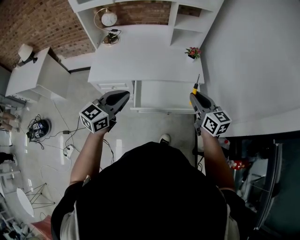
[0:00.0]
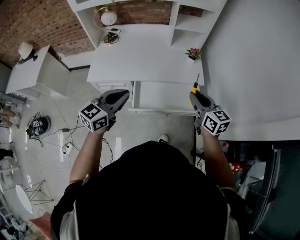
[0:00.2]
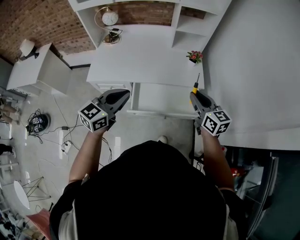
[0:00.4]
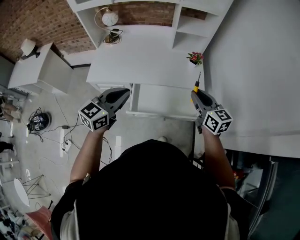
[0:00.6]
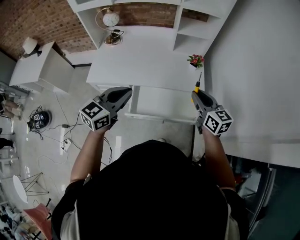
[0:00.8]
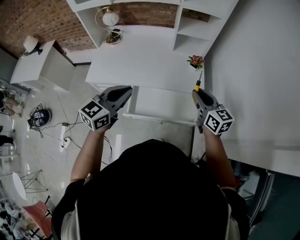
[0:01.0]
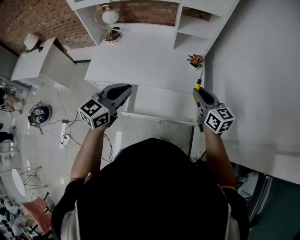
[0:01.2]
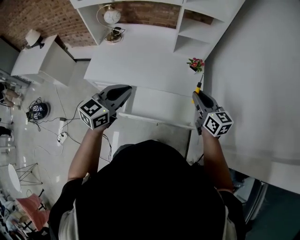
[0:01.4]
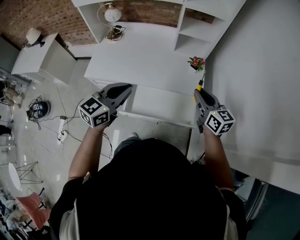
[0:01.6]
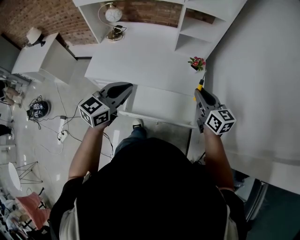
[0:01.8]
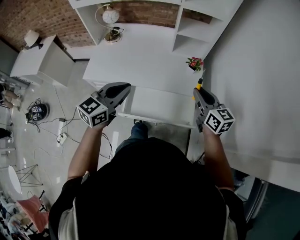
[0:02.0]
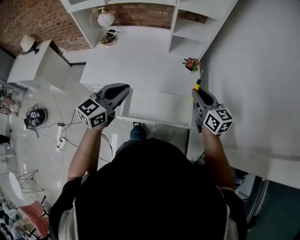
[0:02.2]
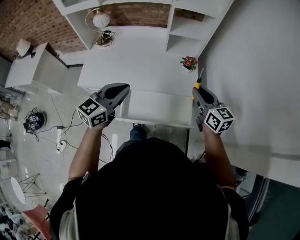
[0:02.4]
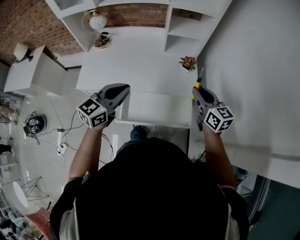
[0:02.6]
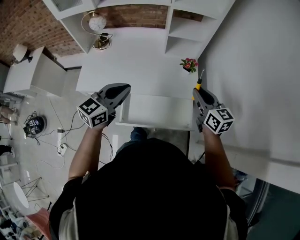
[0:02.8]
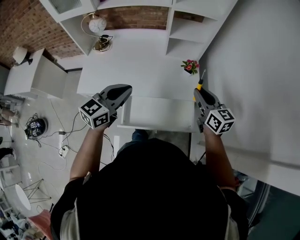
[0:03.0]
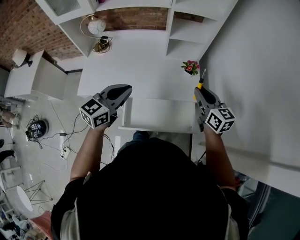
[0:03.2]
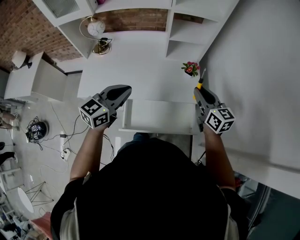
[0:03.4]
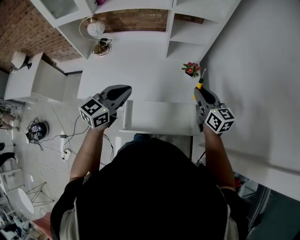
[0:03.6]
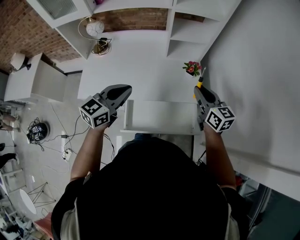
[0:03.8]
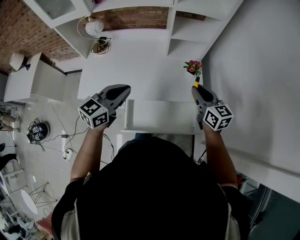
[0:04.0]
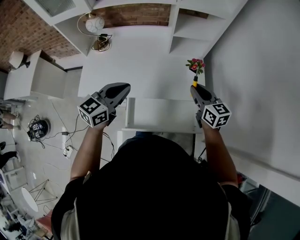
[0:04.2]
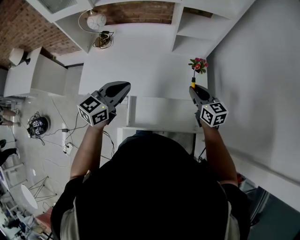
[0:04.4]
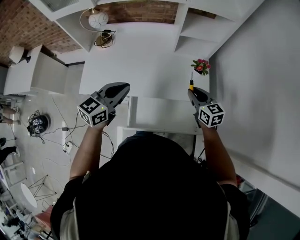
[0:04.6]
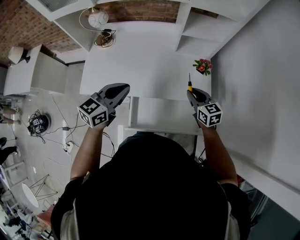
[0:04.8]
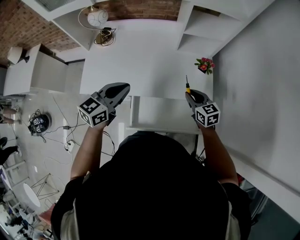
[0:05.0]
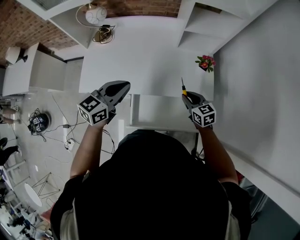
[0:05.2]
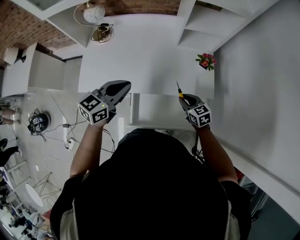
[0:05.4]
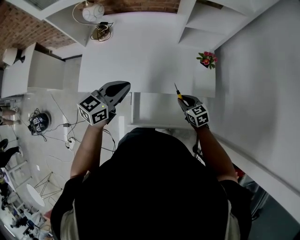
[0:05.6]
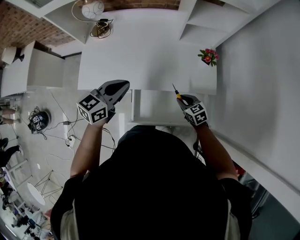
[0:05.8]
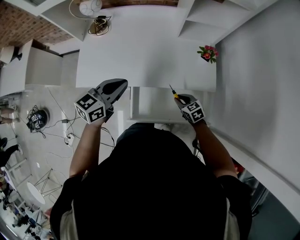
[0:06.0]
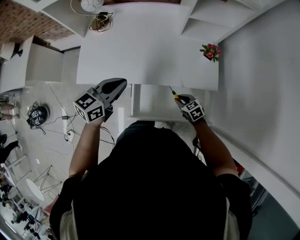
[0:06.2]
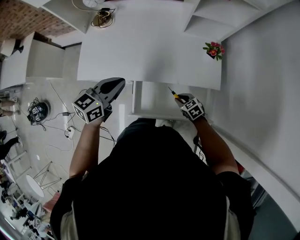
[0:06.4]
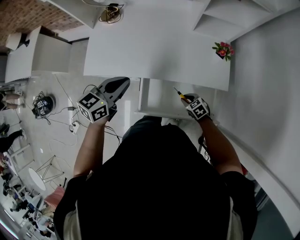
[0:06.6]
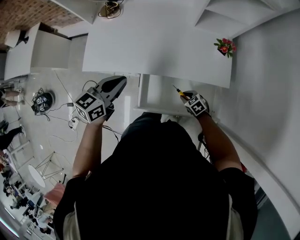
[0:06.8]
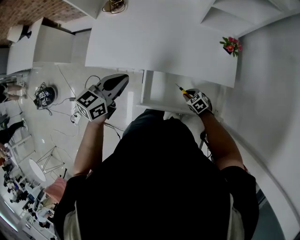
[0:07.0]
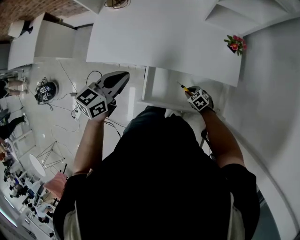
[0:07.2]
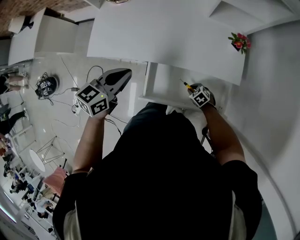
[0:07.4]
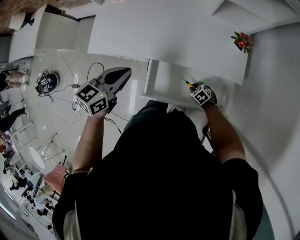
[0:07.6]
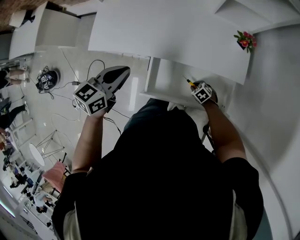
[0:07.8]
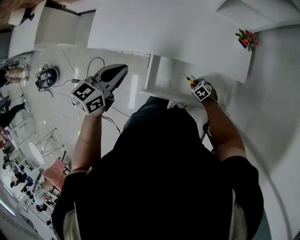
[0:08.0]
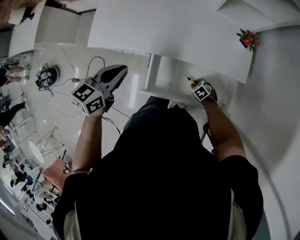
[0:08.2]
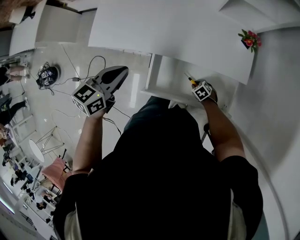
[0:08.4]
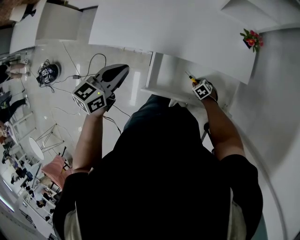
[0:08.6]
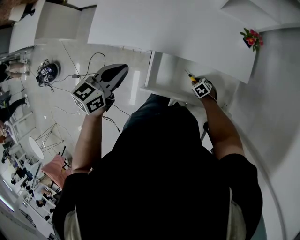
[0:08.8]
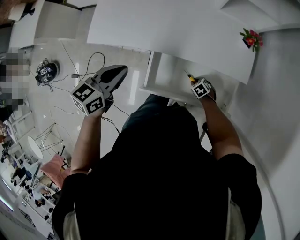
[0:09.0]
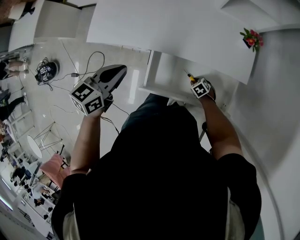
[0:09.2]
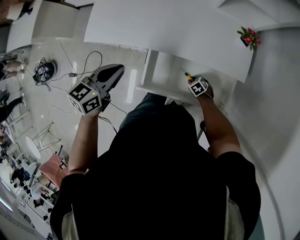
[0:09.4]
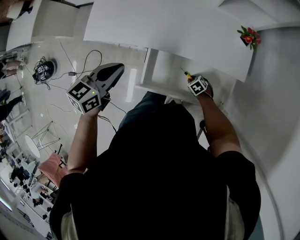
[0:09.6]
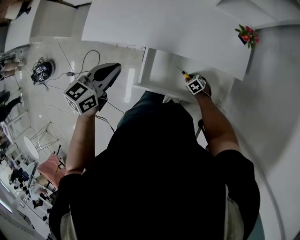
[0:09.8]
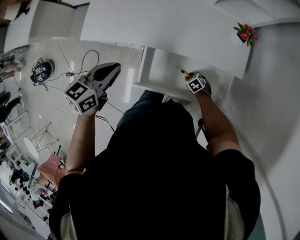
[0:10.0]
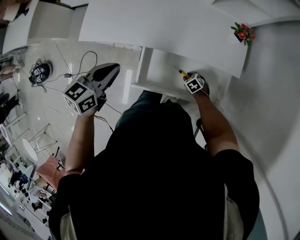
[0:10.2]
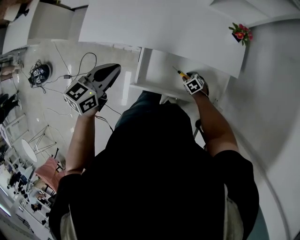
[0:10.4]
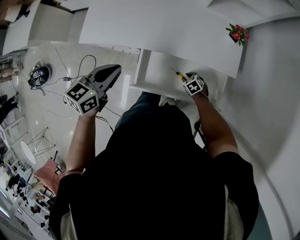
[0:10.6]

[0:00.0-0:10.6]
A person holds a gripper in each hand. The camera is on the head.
0:00.0 to 0:01.6: Both grippers travel together forward and to the right, approximately 15 cm.
0:01.6 to 0:03.0: Both grippers move forward, about 10 cm.
0:03.0 to 0:04.6: The right gripper goes roughly 15 cm downward, to the left and forward, while the left gripper goes some 10 cm to the left and forward.
0:04.6 to 0:06.0: The left gripper is displaced downward by about 5 cm. The right gripper moves downward, some 20 cm, and swivels approximately 30 degrees.
0:06.0 to 0:07.6: The left gripper heads downward and to the left, covering about 10 cm, while the right gripper shifts roughly 20 cm downward, and swivels about 30 degrees.
0:07.6 to 0:09.0: The right gripper moves downward, approximately 5 cm.
0:09.0 to 0:10.6: The right gripper moves roughly 5 cm.

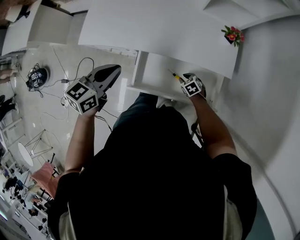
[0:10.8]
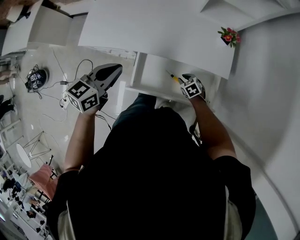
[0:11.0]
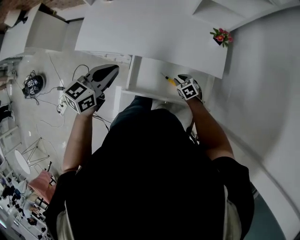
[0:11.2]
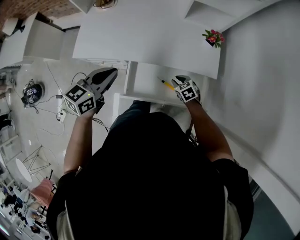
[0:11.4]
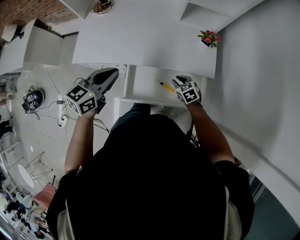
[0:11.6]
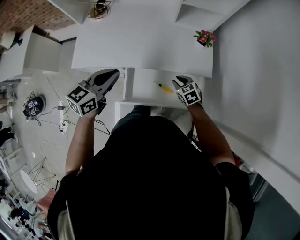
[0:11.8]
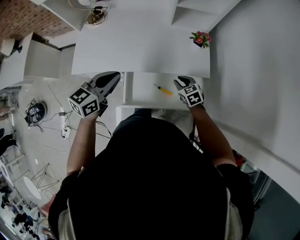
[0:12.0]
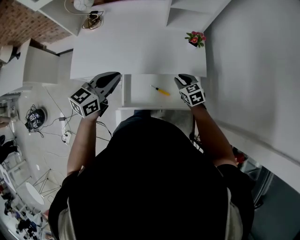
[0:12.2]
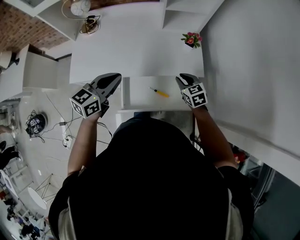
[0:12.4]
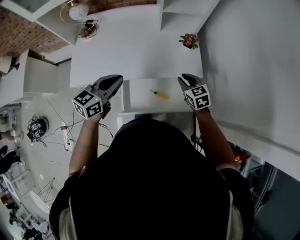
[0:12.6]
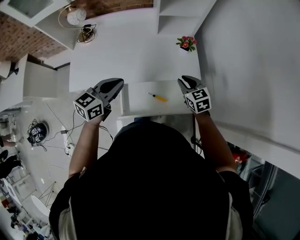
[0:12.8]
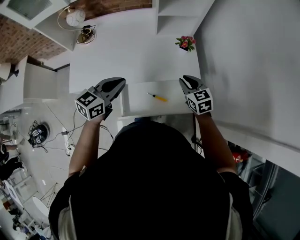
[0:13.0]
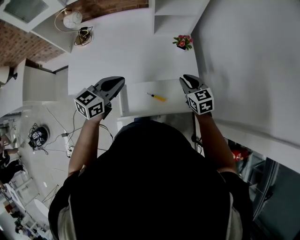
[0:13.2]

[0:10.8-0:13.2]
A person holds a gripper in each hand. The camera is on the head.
0:10.8 to 0:12.0: The right gripper heads upward, covering some 20 cm, and turns by some 20 degrees. Meanwhile the left gripper goes approximately 10 cm upward and to the right.
0:12.0 to 0:13.2: The right gripper shifts about 15 cm upward and to the right; the left gripper is displaced to the right by roughly 5 cm.

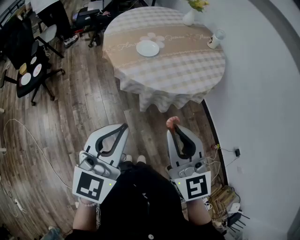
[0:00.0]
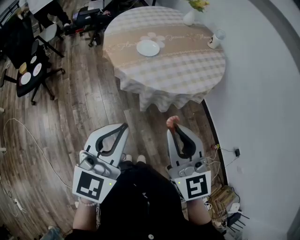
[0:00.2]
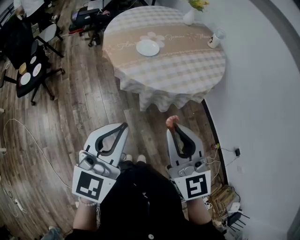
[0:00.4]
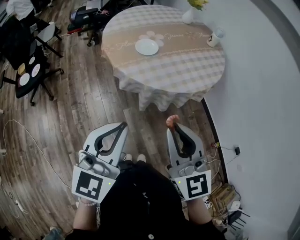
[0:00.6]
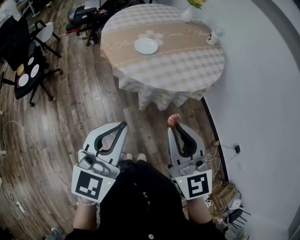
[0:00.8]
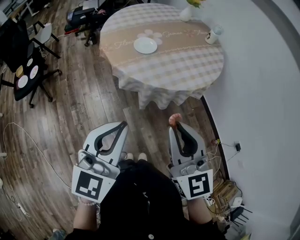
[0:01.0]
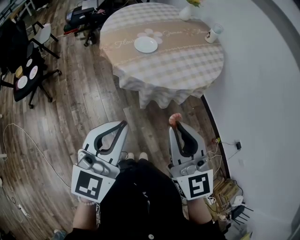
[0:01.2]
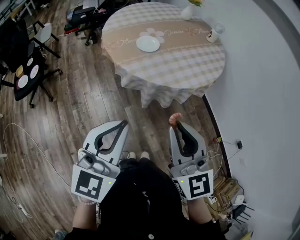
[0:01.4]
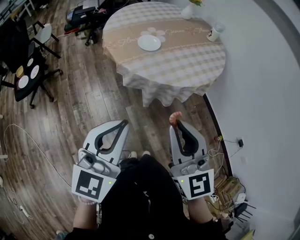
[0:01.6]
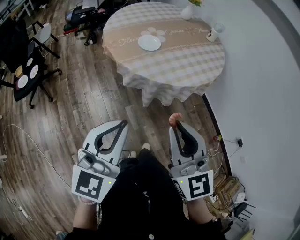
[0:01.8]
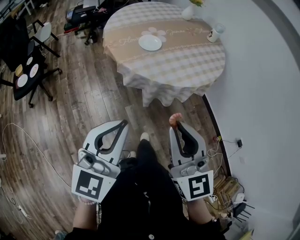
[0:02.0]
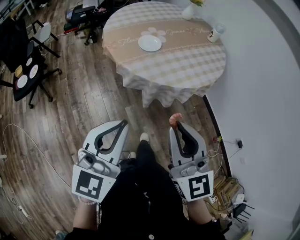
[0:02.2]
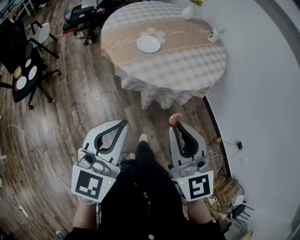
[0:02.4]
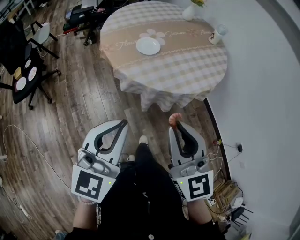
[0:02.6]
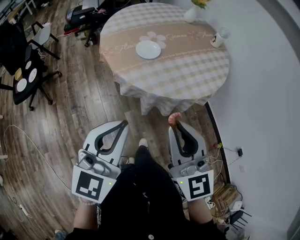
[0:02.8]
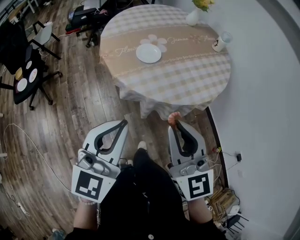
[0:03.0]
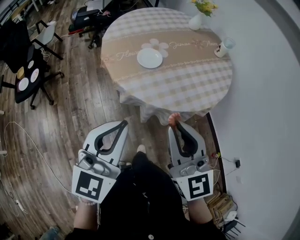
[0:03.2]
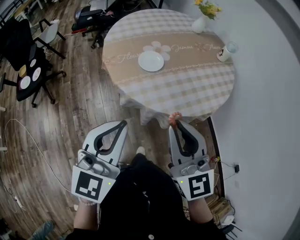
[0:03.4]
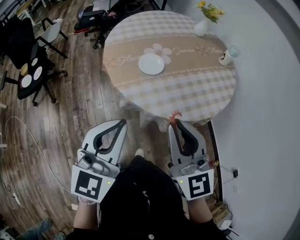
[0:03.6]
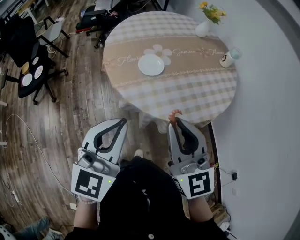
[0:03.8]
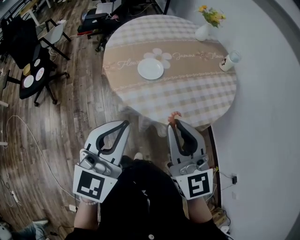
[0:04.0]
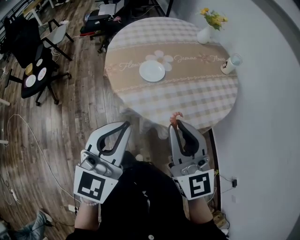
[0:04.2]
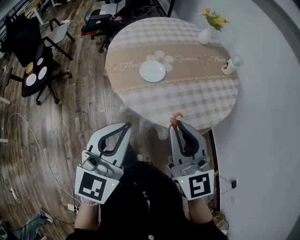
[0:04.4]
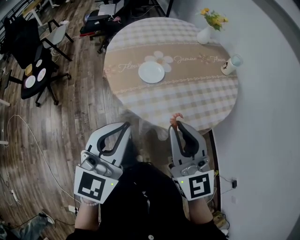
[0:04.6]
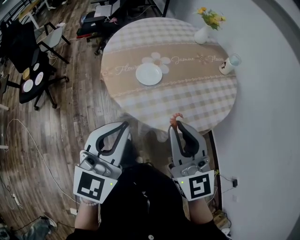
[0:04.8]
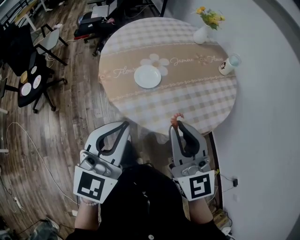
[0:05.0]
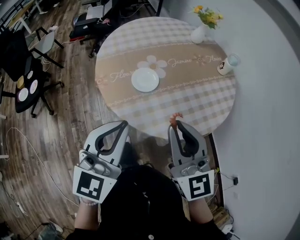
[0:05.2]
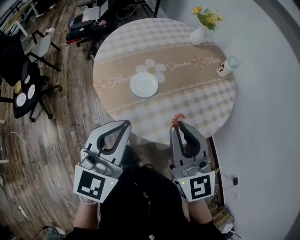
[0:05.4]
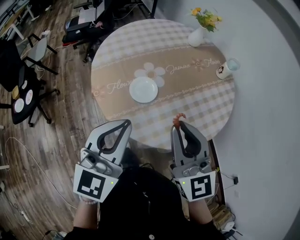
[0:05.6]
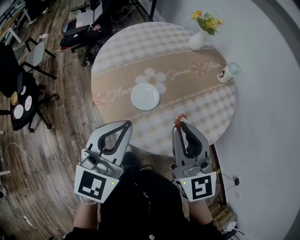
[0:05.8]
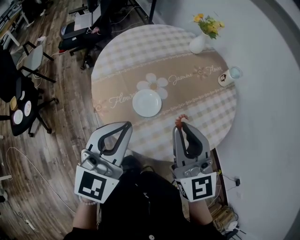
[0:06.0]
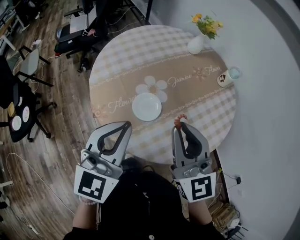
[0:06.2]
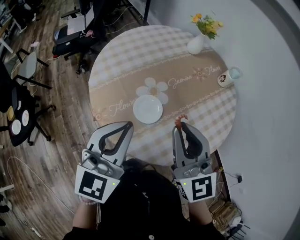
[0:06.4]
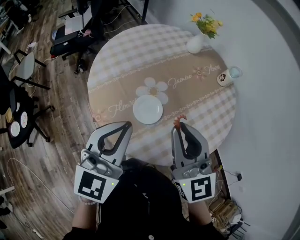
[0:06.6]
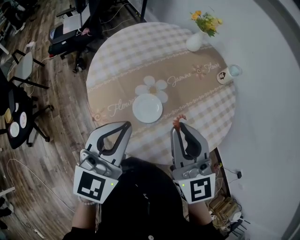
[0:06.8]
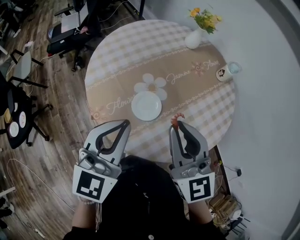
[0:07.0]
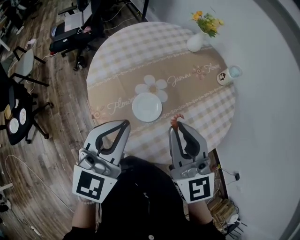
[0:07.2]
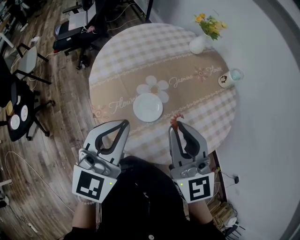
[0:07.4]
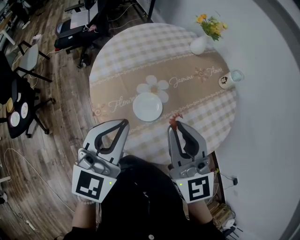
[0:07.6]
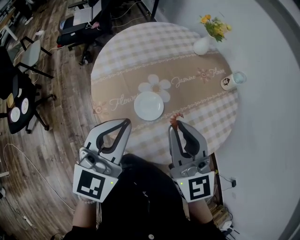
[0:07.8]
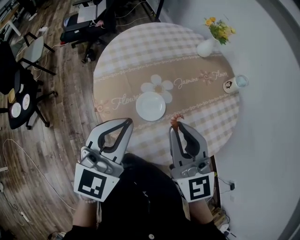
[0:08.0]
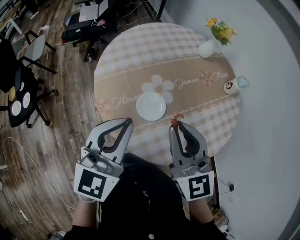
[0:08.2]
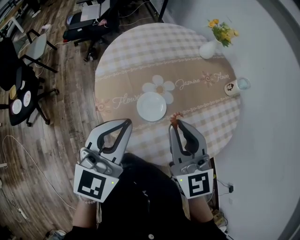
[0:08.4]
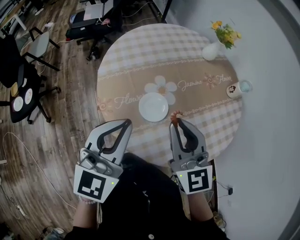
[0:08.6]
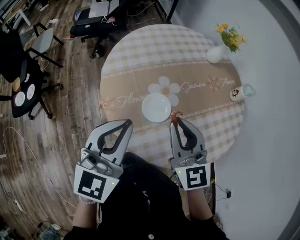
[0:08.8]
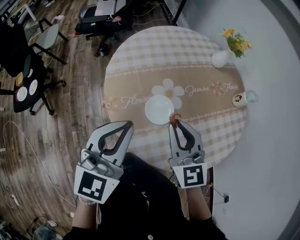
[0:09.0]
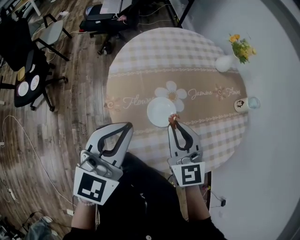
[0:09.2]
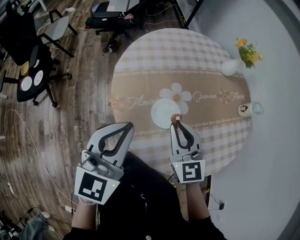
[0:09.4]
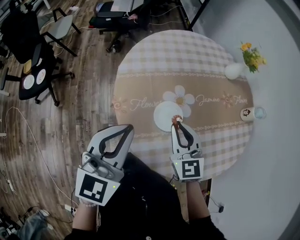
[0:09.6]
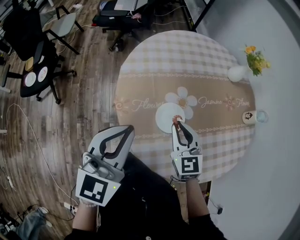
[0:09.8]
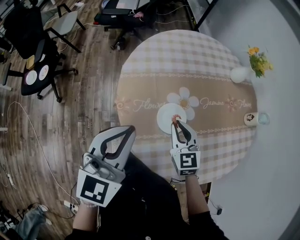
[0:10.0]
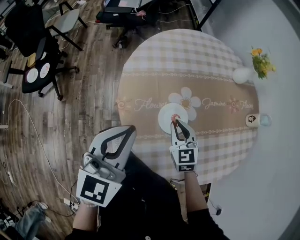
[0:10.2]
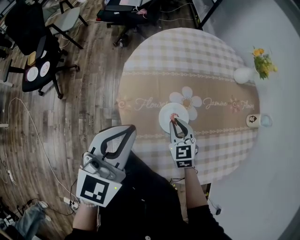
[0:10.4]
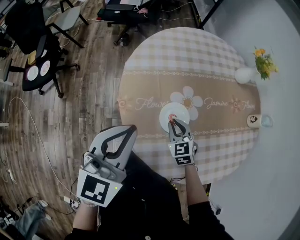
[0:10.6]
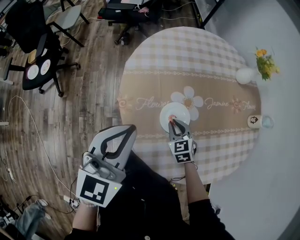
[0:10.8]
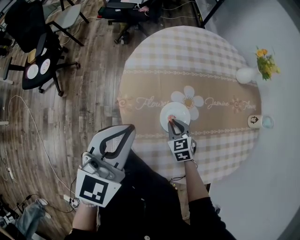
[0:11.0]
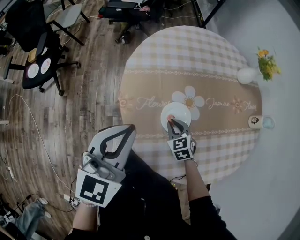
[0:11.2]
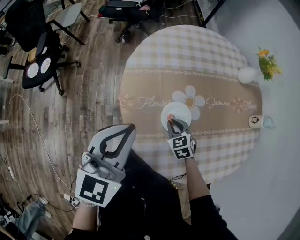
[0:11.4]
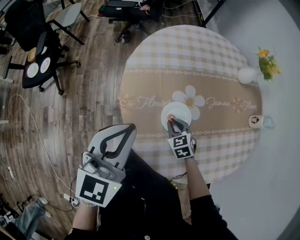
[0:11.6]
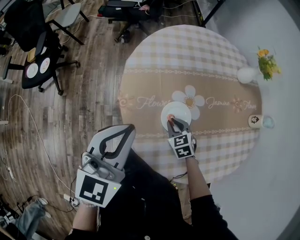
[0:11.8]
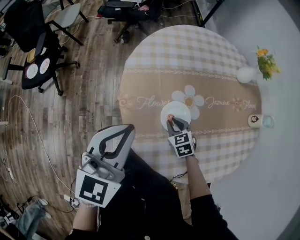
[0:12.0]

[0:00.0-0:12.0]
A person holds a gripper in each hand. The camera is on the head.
0:00.0 to 0:01.6: The grippers move only a little.
0:01.6 to 0:03.0: Both grippers move forward, roughly 10 cm.
0:03.0 to 0:04.4: The right gripper heads forward, covering approximately 10 cm; the left gripper shifts roughly 10 cm forward and to the right.
0:04.4 to 0:06.0: The two grippers go roughly 20 cm forward.
0:06.0 to 0:07.6: There are only small adjustments of the grippers.
0:07.6 to 0:09.0: The right gripper goes approximately 10 cm downward.
0:09.0 to 0:10.4: The right gripper heads downward, covering approximately 20 cm, and swivels some 20 degrees. Meanwhile the left gripper shifts by approximately 5 cm.
0:10.4 to 0:12.0: The right gripper shifts some 10 cm downward.
